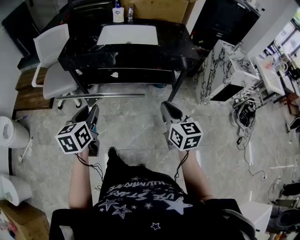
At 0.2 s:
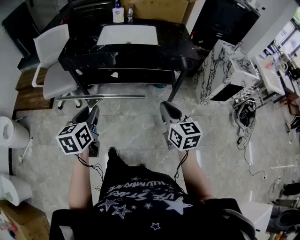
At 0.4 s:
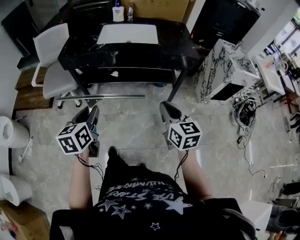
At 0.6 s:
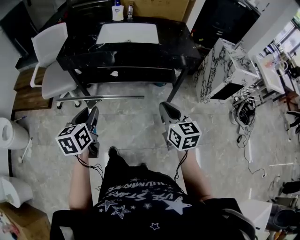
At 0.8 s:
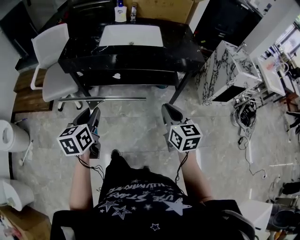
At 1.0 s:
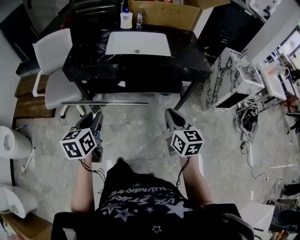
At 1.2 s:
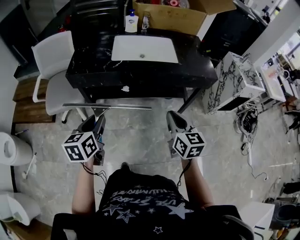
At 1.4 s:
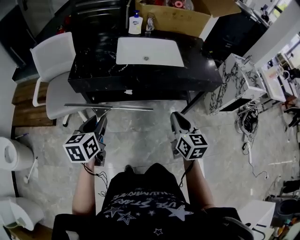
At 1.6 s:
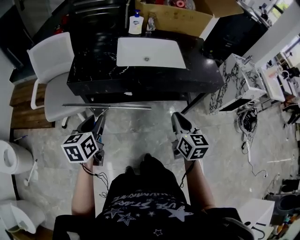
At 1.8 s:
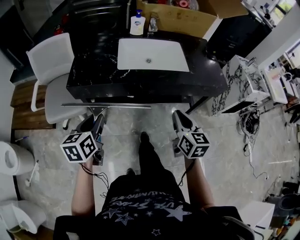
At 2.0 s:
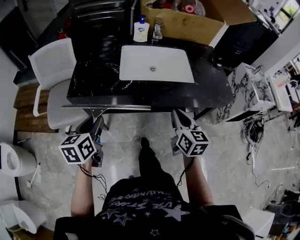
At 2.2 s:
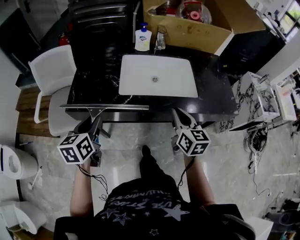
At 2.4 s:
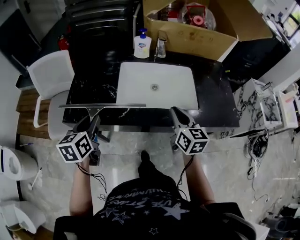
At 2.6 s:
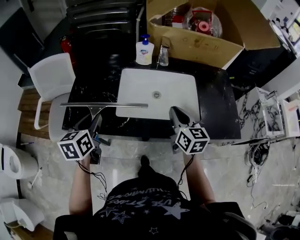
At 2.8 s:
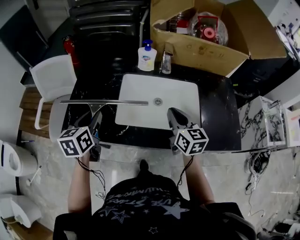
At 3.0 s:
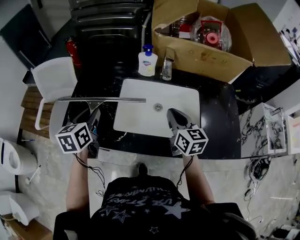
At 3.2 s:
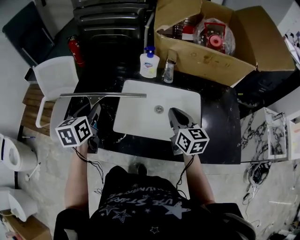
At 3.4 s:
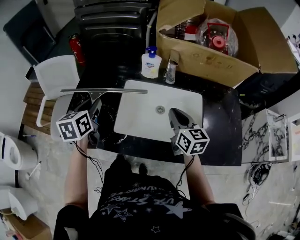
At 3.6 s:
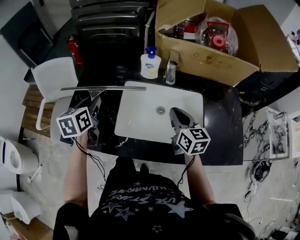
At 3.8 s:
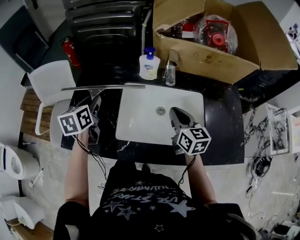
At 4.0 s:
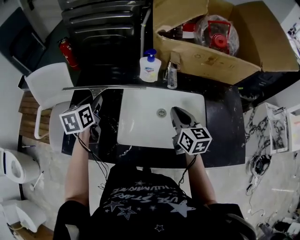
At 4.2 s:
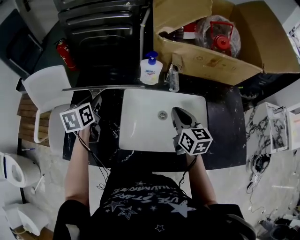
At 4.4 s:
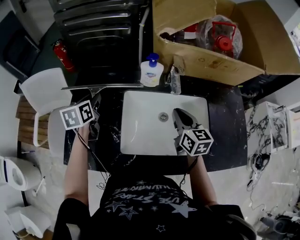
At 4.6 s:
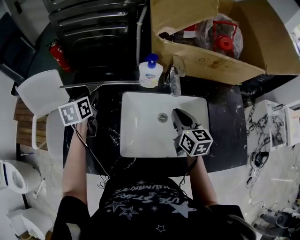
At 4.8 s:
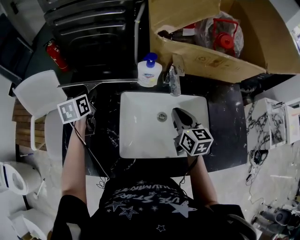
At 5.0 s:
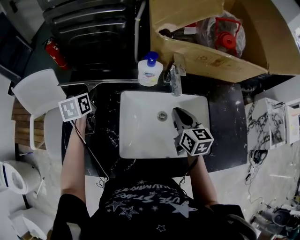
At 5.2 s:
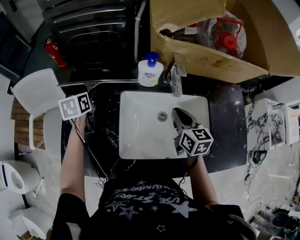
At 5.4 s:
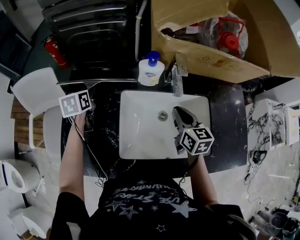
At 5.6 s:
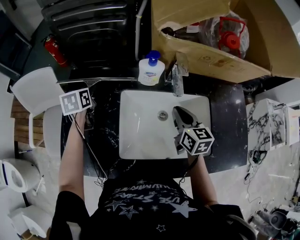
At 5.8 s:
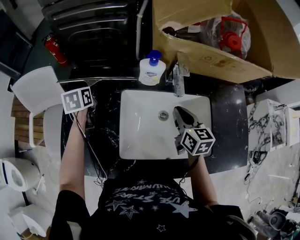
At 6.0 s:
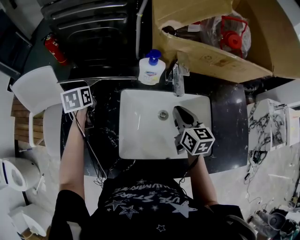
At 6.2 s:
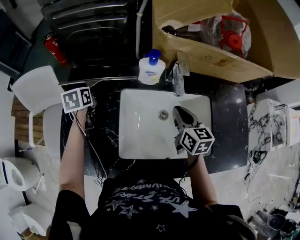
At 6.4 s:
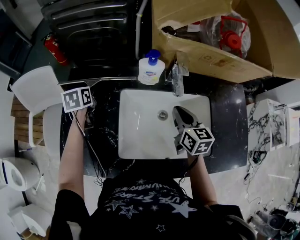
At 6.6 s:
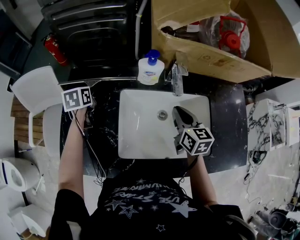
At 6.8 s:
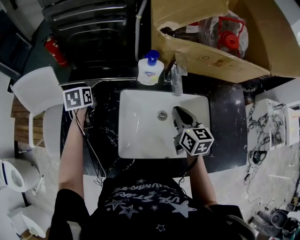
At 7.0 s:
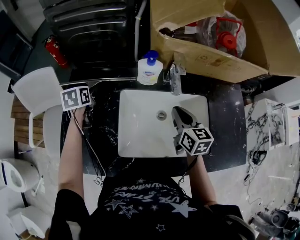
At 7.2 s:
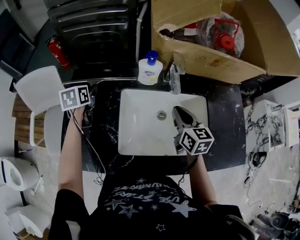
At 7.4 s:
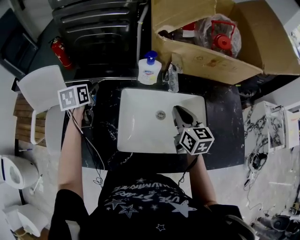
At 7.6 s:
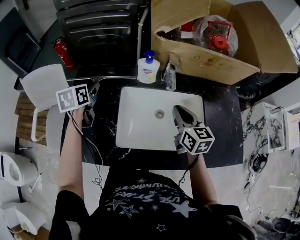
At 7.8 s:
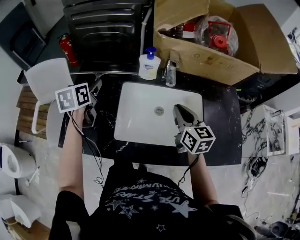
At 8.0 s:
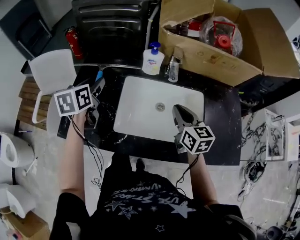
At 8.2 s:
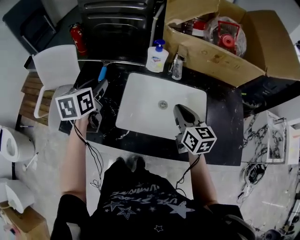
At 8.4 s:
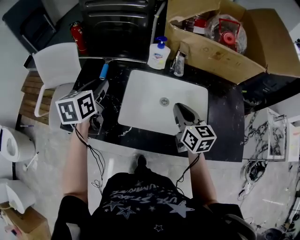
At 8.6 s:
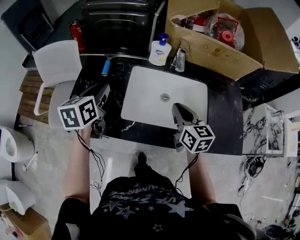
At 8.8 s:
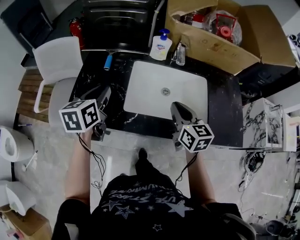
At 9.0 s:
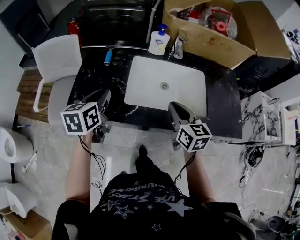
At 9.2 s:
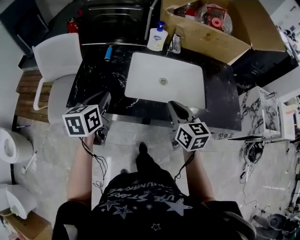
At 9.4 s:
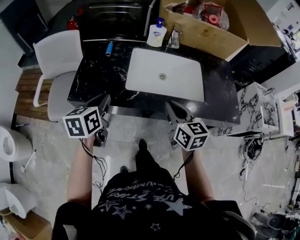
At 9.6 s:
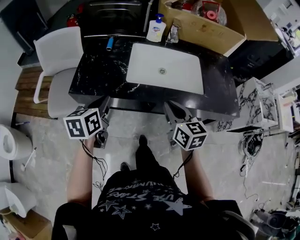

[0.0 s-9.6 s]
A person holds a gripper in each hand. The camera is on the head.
0.0 to 1.6 s: Both grippers move forward and to the left, some 25 cm.
1.6 to 3.2 s: Both grippers are carried forward, about 40 cm.
3.2 to 4.8 s: The left gripper travels forward by approximately 25 cm. The right gripper shifts some 10 cm forward.
4.8 to 6.4 s: The left gripper heads downward, covering some 5 cm.
6.4 to 8.0 s: The right gripper travels backward and upward by some 10 cm. The left gripper heads backward and upward, covering about 20 cm.
8.0 to 9.6 s: The right gripper is displaced backward and to the left by about 30 cm; the left gripper is displaced backward by approximately 30 cm, and closes up.

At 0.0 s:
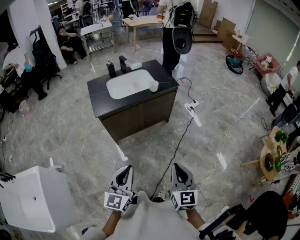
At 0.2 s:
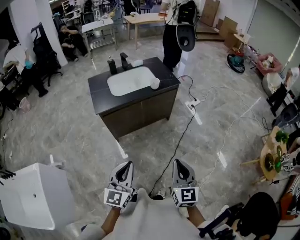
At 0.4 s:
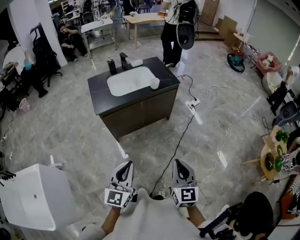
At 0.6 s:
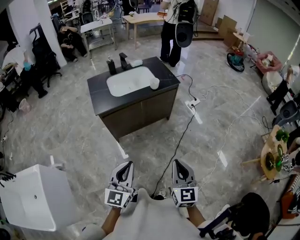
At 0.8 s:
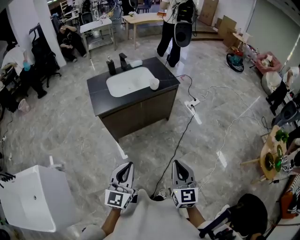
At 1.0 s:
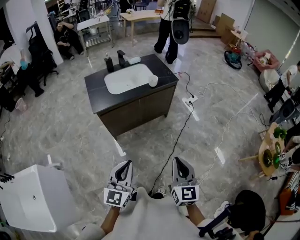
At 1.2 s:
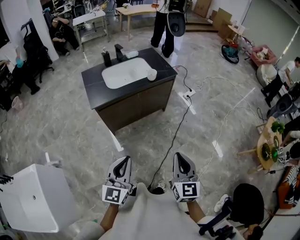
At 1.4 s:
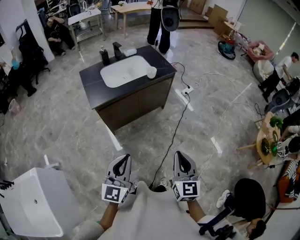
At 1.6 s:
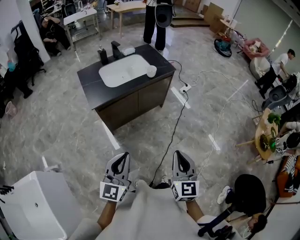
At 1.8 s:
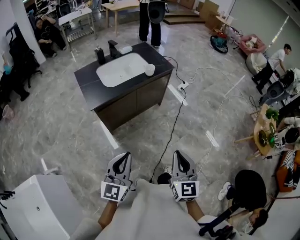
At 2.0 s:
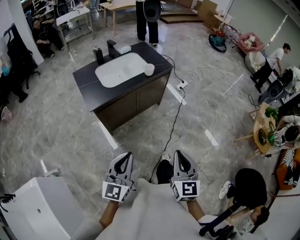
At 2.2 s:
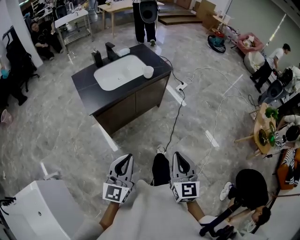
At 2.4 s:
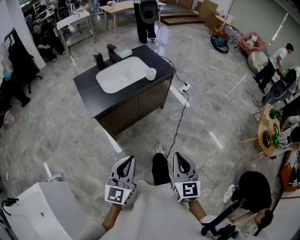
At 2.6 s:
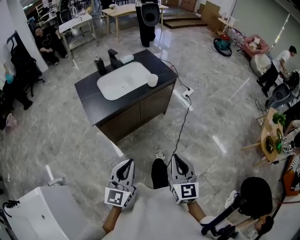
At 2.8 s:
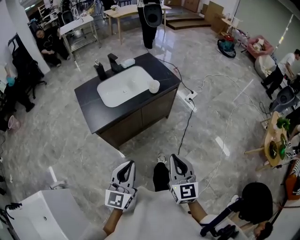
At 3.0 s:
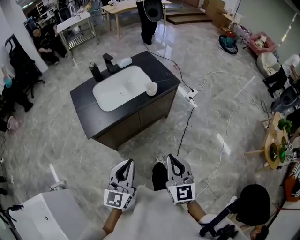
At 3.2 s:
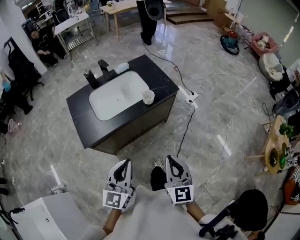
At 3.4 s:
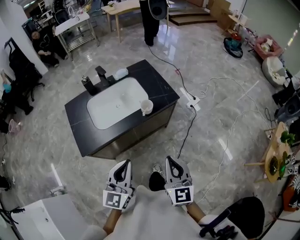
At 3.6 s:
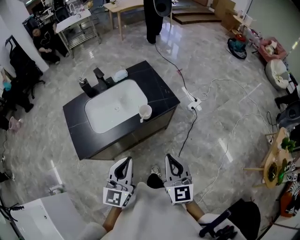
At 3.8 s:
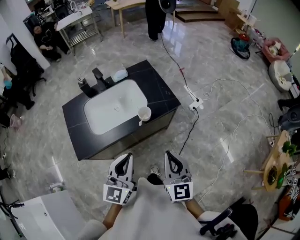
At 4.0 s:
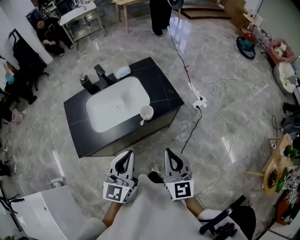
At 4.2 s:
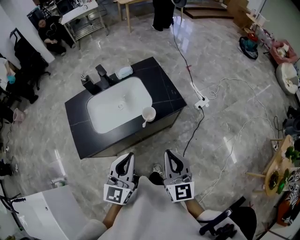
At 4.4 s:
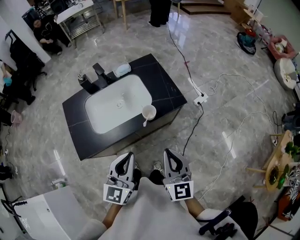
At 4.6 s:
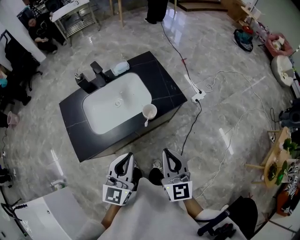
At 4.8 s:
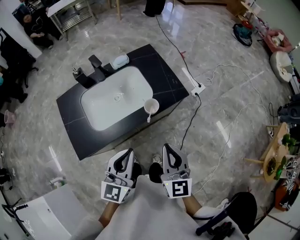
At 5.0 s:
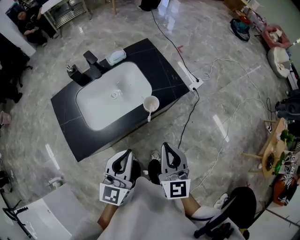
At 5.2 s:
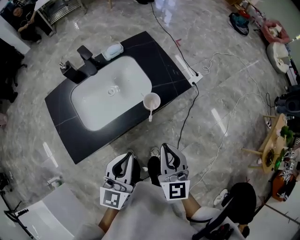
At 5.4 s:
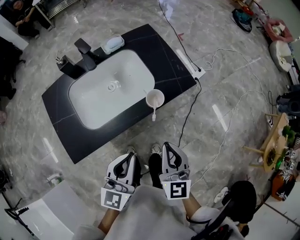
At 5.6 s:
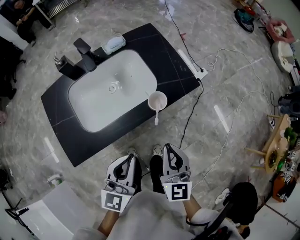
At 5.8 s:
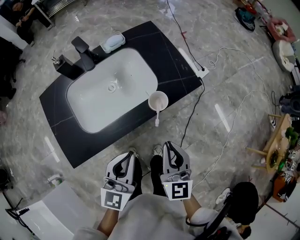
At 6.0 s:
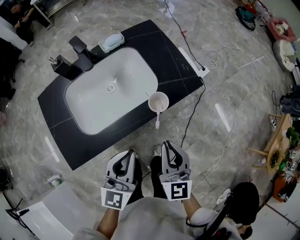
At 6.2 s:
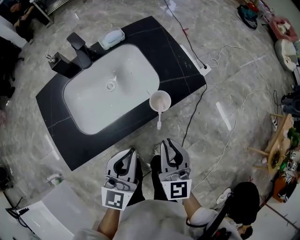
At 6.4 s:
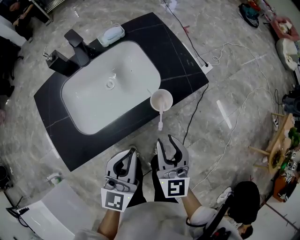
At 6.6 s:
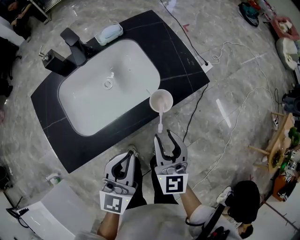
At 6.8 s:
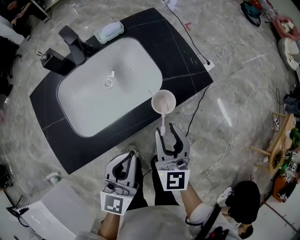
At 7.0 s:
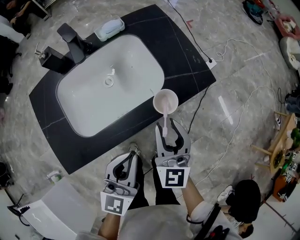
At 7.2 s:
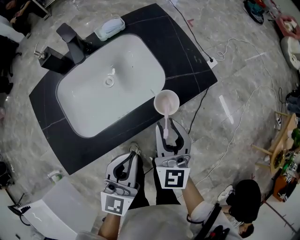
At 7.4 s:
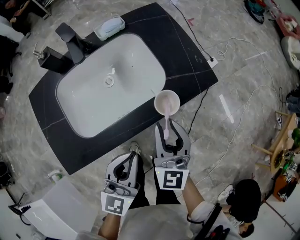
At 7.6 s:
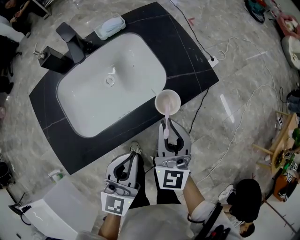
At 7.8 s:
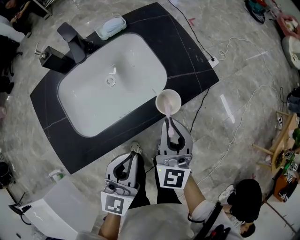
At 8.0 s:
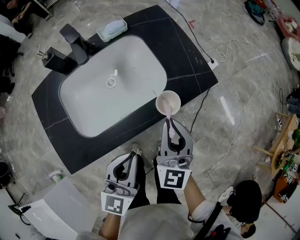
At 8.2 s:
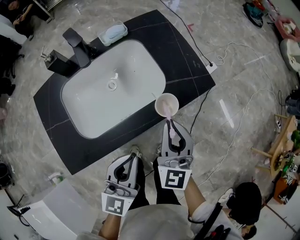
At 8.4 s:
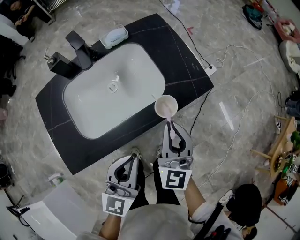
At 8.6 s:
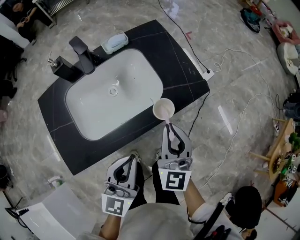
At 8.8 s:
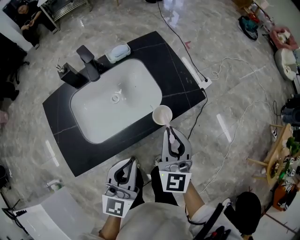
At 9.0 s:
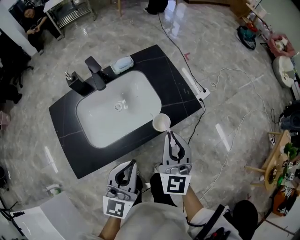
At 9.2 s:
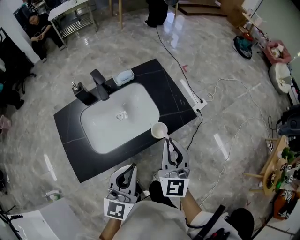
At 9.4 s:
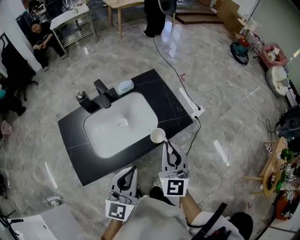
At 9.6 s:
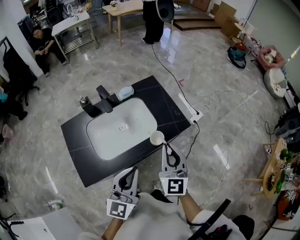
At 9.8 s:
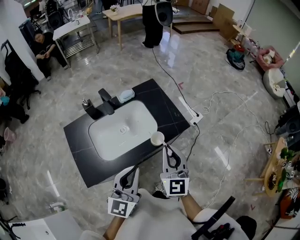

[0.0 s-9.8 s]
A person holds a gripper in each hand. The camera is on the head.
0.0 to 1.4 s: The grippers move only a little.
1.4 to 2.8 s: The left gripper heads forward, covering roughly 10 cm. The right gripper goes approximately 15 cm forward and to the left.
2.8 to 4.2 s: The grippers both shift forward by roughly 25 cm.
4.2 to 5.6 s: Both grippers travel together downward and to the left, approximately 10 cm.
5.6 to 7.0 s: The right gripper heads forward and downward, covering approximately 10 cm, and opens, while the left gripper ends up approximately 5 cm from where it was.
7.0 to 8.4 s: The right gripper closes.
8.4 to 9.8 s: The grippers both shift upward by about 15 cm.

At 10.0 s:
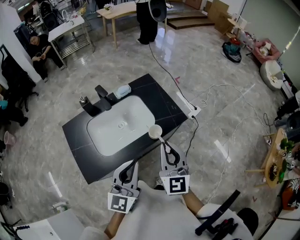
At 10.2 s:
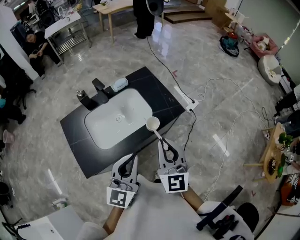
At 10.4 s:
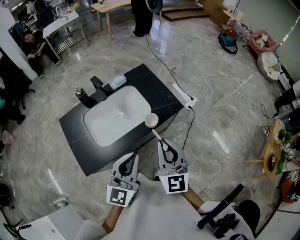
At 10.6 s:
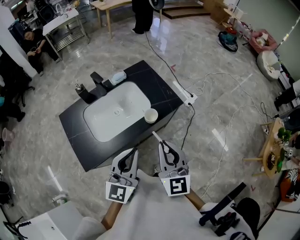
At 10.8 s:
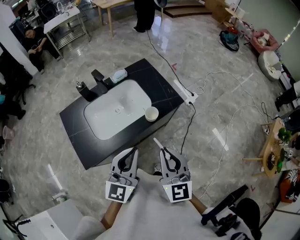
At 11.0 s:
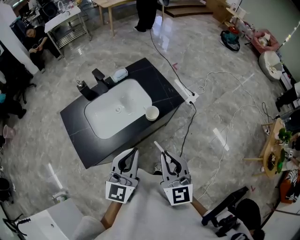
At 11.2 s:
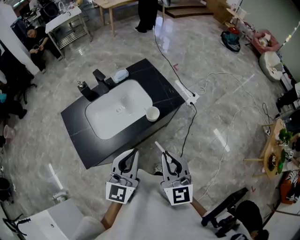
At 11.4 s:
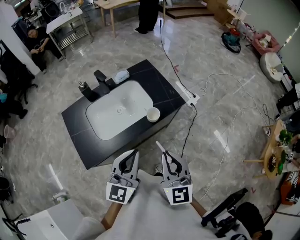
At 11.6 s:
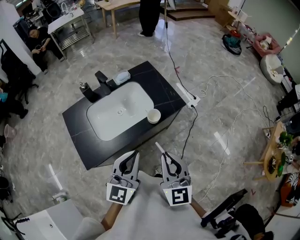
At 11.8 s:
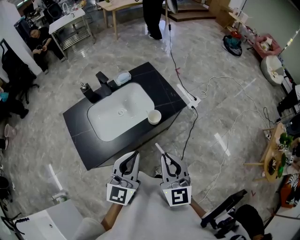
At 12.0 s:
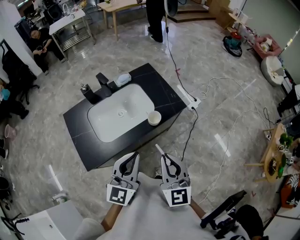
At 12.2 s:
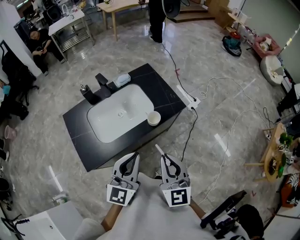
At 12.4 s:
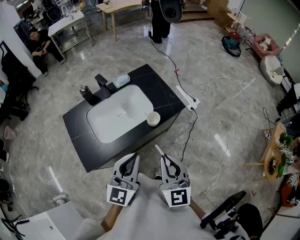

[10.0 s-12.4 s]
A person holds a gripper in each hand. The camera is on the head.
10.0 to 11.2 s: The right gripper is displaced backward by about 10 cm.
11.2 to 12.4 s: Both grippers stay put.

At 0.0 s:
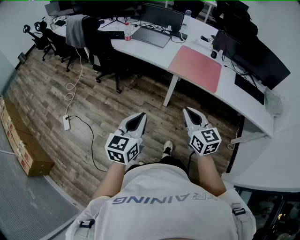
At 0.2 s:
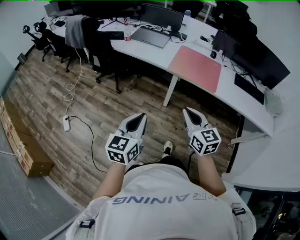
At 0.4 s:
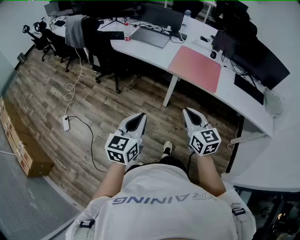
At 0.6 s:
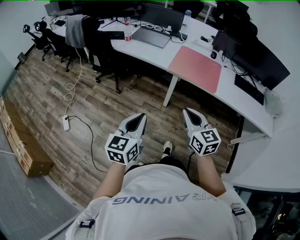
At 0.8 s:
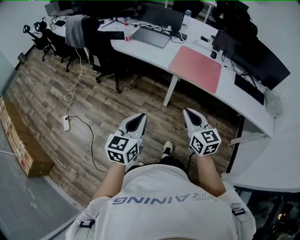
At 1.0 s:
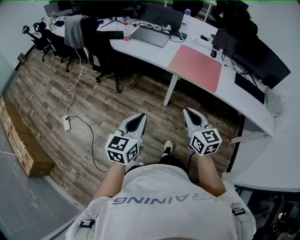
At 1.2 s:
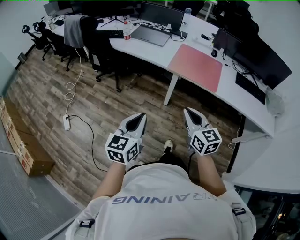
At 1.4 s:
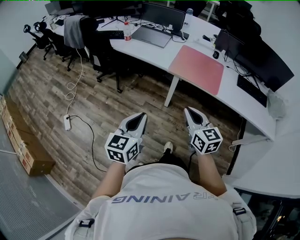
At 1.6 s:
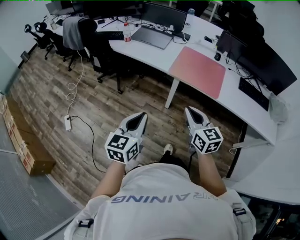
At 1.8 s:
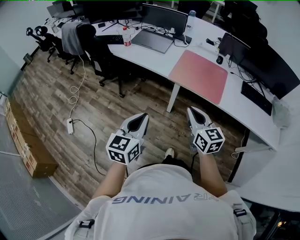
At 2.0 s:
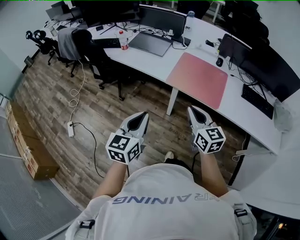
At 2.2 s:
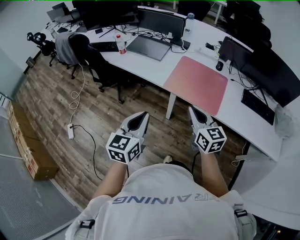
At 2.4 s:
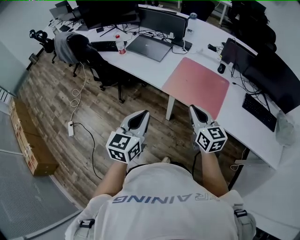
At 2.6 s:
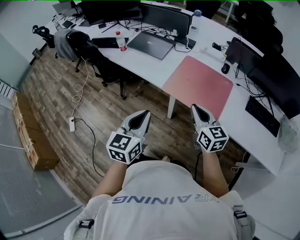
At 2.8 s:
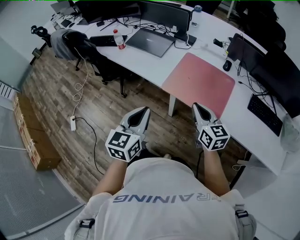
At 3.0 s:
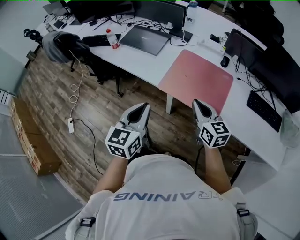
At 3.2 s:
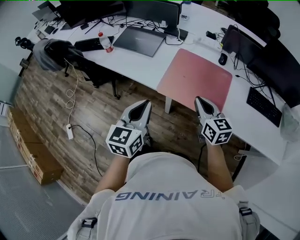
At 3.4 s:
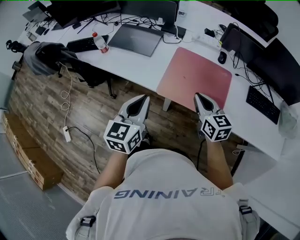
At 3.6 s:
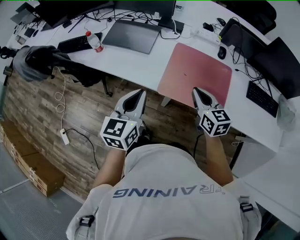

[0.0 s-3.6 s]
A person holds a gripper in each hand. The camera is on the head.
0.0 to 1.8 s: The right gripper heads forward and to the right, covering approximately 10 cm. Meanwhile the left gripper is displaced forward by approximately 10 cm.
1.8 to 3.6 s: Both grippers move forward, roughly 30 cm.
